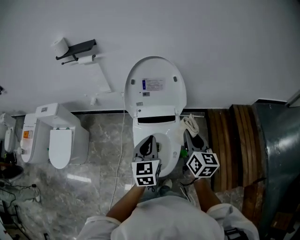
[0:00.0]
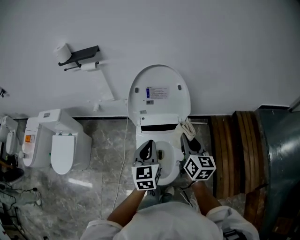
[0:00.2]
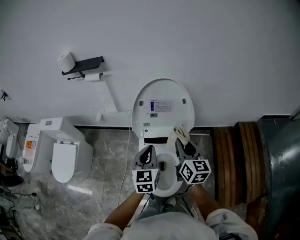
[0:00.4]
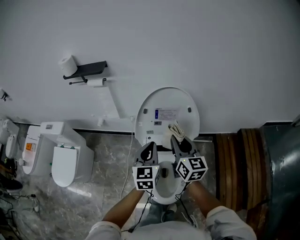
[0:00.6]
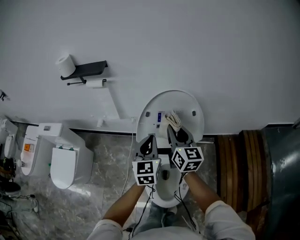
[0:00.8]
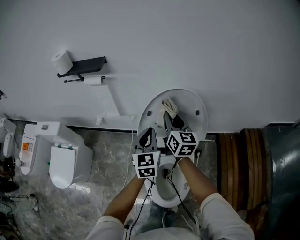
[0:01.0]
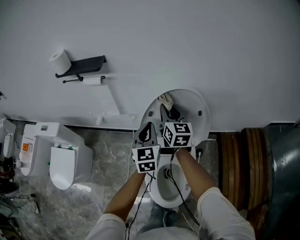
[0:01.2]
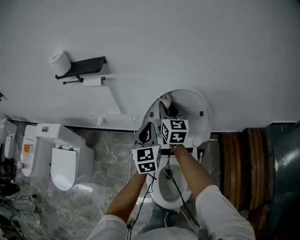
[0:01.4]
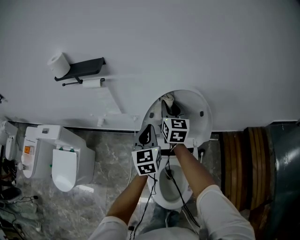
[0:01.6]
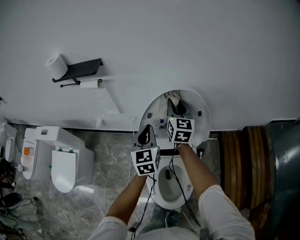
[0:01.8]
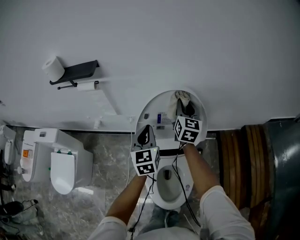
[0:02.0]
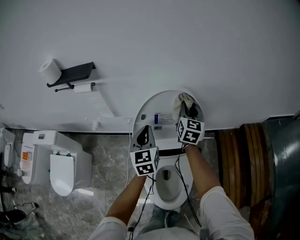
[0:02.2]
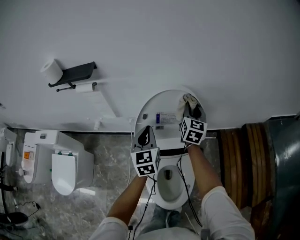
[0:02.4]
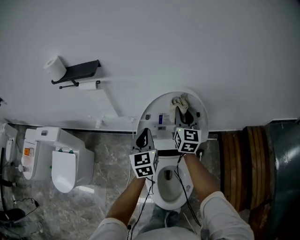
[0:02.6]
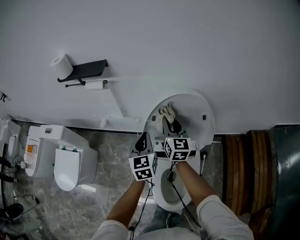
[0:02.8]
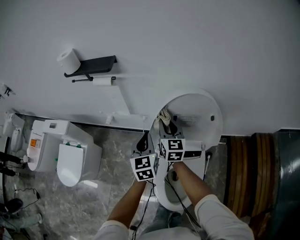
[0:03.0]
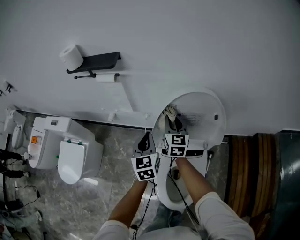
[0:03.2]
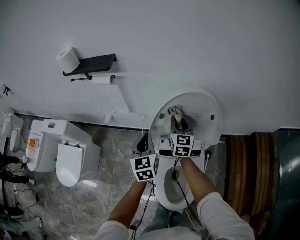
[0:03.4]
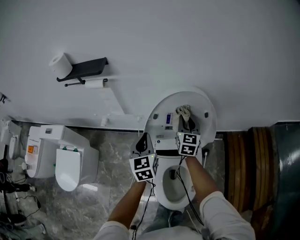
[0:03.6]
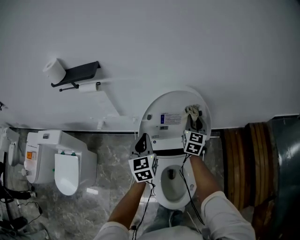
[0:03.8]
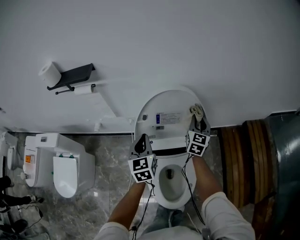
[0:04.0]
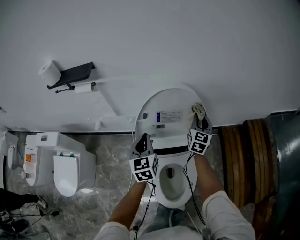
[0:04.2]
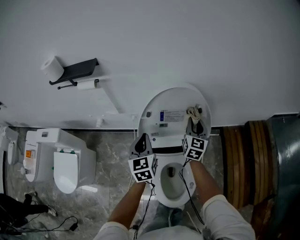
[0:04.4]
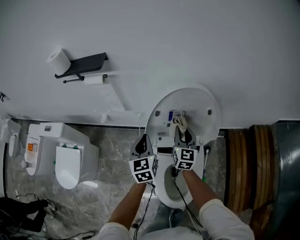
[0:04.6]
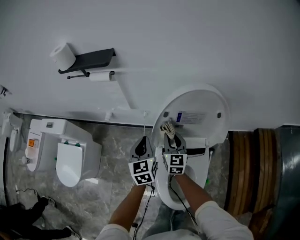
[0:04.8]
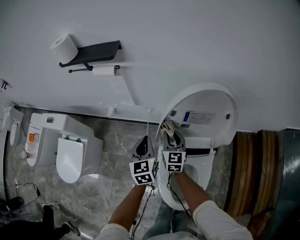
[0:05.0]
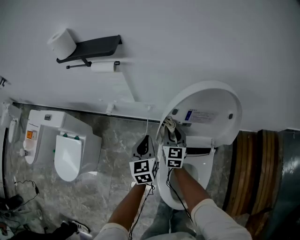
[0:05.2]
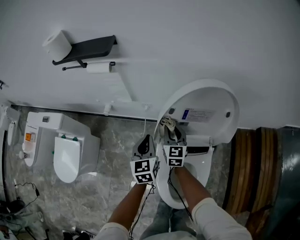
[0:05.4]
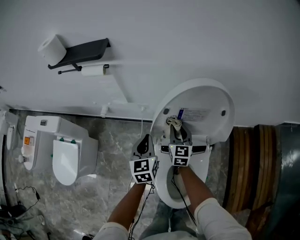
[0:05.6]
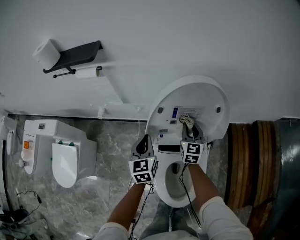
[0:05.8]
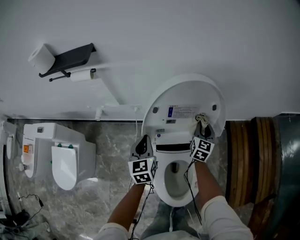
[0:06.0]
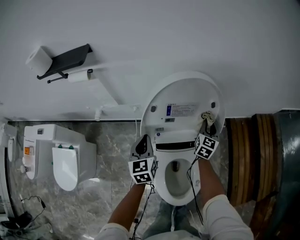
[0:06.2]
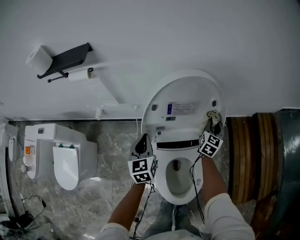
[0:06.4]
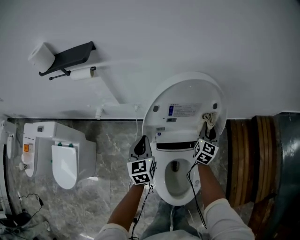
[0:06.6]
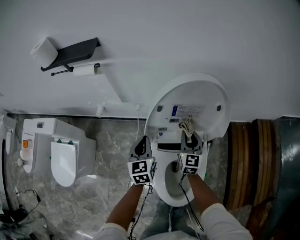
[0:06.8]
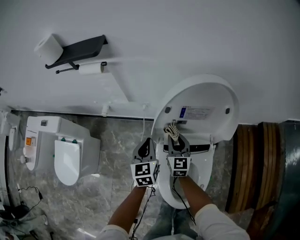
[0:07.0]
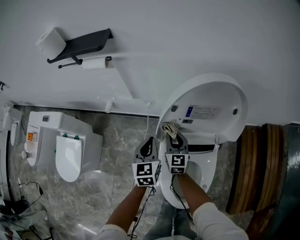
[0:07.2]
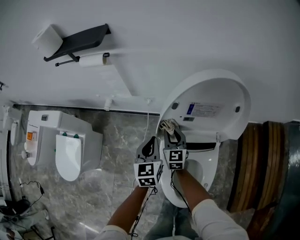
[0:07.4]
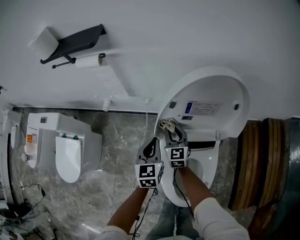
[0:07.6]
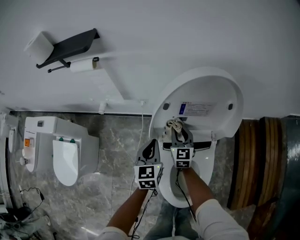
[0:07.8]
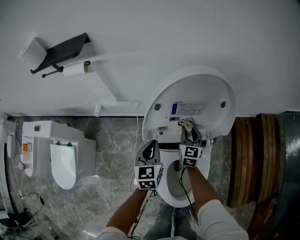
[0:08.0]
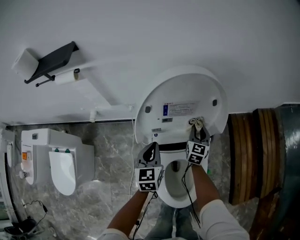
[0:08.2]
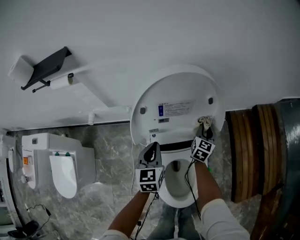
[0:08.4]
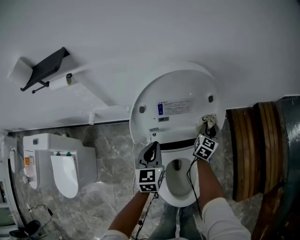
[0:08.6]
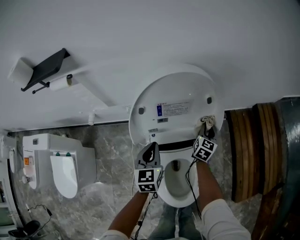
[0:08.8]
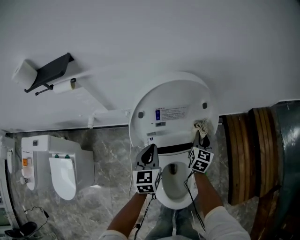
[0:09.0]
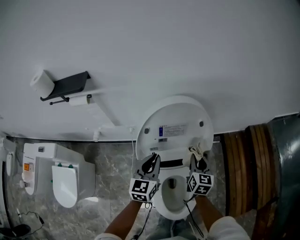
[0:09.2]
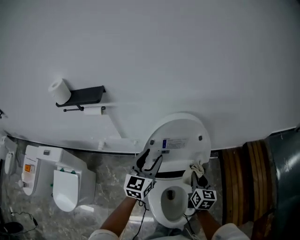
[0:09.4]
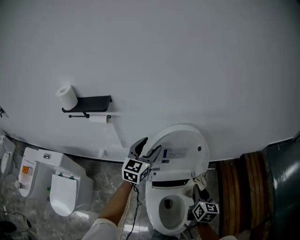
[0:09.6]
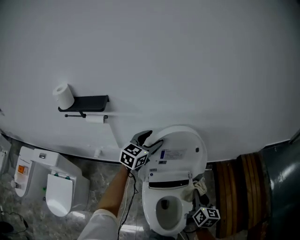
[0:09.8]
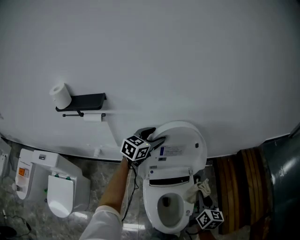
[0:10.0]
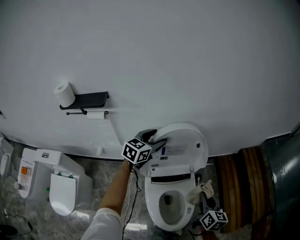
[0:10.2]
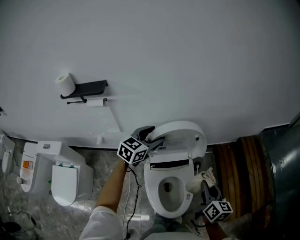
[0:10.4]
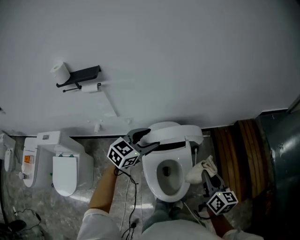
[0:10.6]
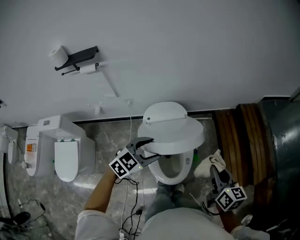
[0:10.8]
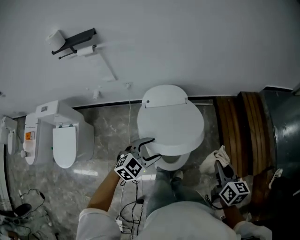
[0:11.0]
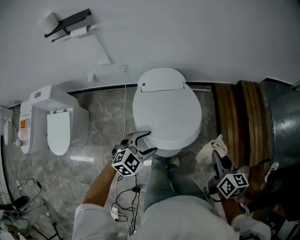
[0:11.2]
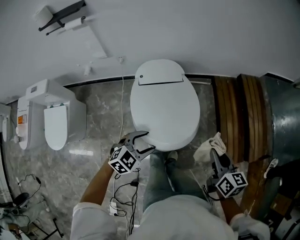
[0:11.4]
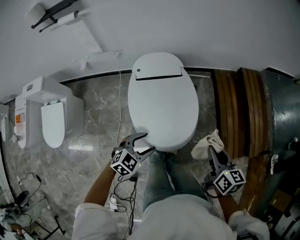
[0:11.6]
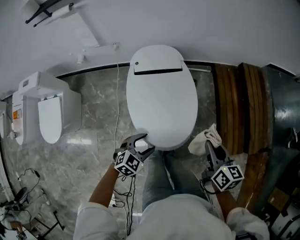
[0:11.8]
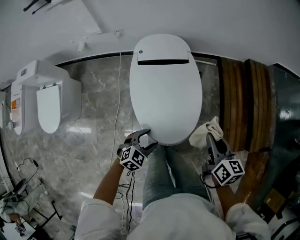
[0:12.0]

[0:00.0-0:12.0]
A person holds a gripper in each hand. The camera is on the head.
0:00.0 to 0:01.6: The left gripper shifts about 30 cm forward, while the right gripper is displaced forward and to the left by roughly 40 cm.
0:01.6 to 0:03.0: The left gripper goes about 5 cm to the left. Meanwhile the right gripper is displaced downward by some 5 cm, and travels to the right and back again, some 15 cm each way.
0:03.0 to 0:04.4: The right gripper shifts roughly 20 cm to the right, and turns by about 30 degrees.
0:04.4 to 0:06.0: The grippers both shift downward by about 10 cm. The left gripper reaches about 10 cm to the left, then returns. The right gripper reaches some 25 cm to the left, then returns.
0:06.0 to 0:07.6: The right gripper shifts roughly 25 cm to the left, and swivels some 30 degrees. The left gripper ends up some 5 cm from where it was.
0:07.6 to 0:09.0: The right gripper shifts by approximately 30 cm, and changes its angle by about 40 degrees. The left gripper shifts by some 10 cm.
0:09.0 to 0:10.4: The left gripper moves upward, approximately 20 cm, turns by about 40 degrees, and opens up; the right gripper moves backward and upward, approximately 30 cm, and swivels about 30 degrees.
0:10.4 to 0:12.0: The left gripper heads backward, downward and to the right, covering some 50 cm, and changes its angle by roughly 30 degrees. Meanwhile the right gripper travels backward, downward and to the right by approximately 20 cm.

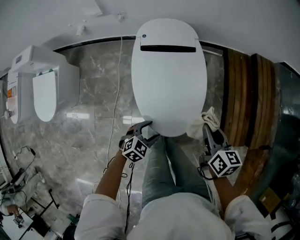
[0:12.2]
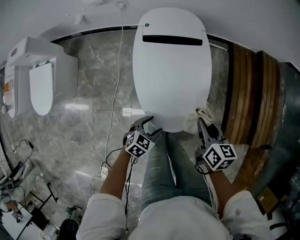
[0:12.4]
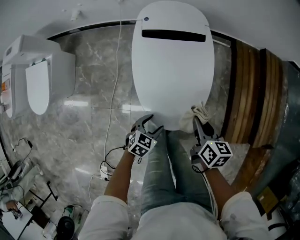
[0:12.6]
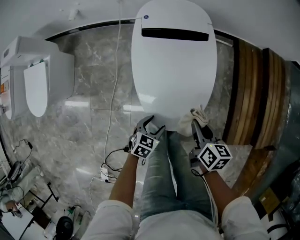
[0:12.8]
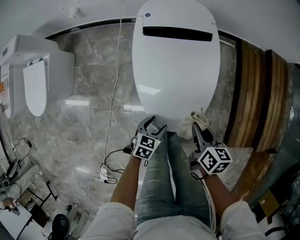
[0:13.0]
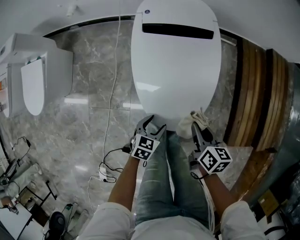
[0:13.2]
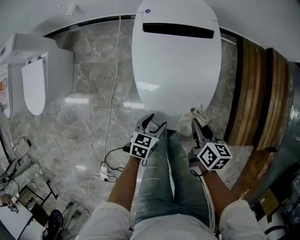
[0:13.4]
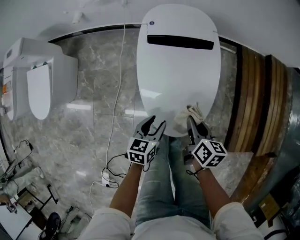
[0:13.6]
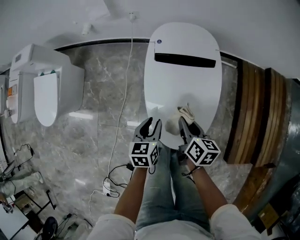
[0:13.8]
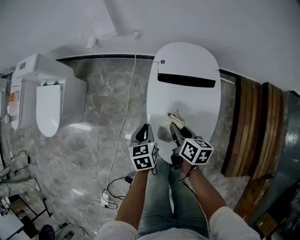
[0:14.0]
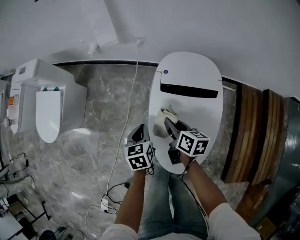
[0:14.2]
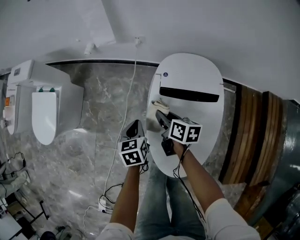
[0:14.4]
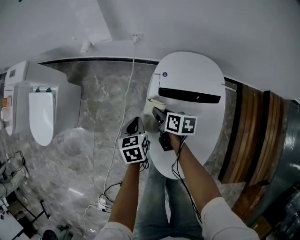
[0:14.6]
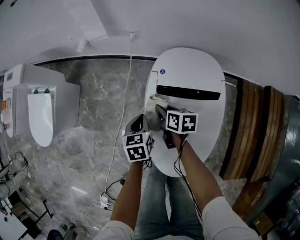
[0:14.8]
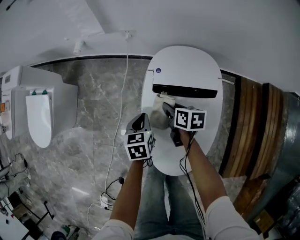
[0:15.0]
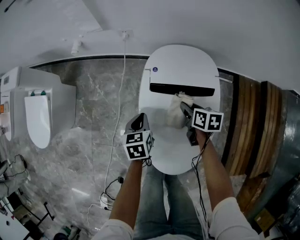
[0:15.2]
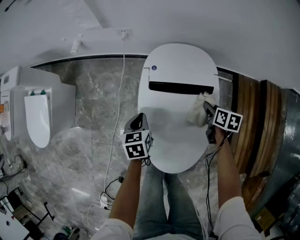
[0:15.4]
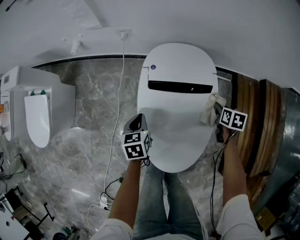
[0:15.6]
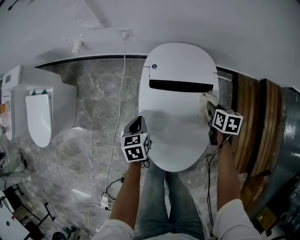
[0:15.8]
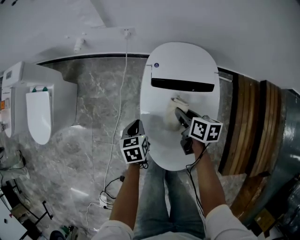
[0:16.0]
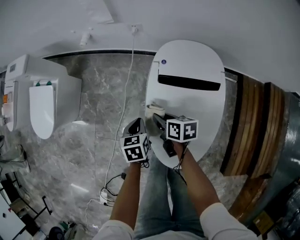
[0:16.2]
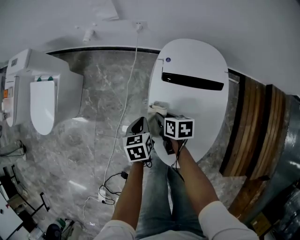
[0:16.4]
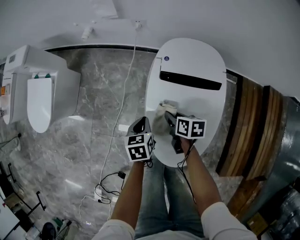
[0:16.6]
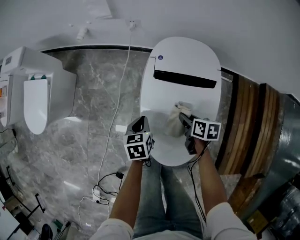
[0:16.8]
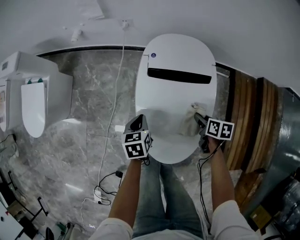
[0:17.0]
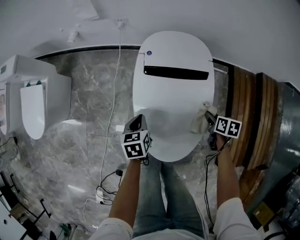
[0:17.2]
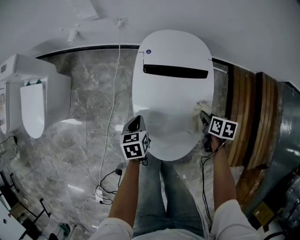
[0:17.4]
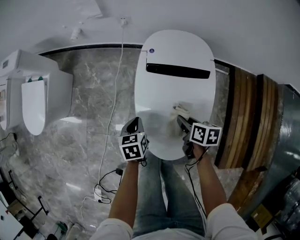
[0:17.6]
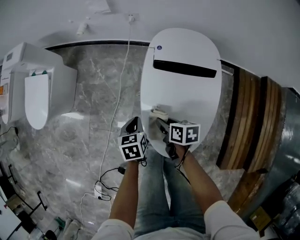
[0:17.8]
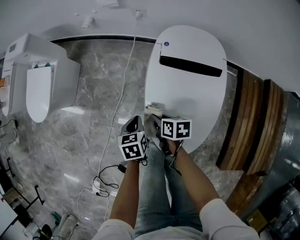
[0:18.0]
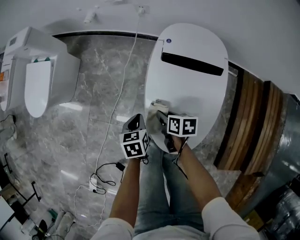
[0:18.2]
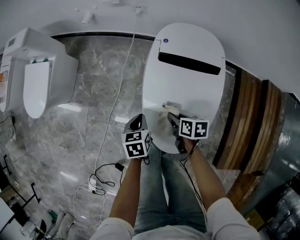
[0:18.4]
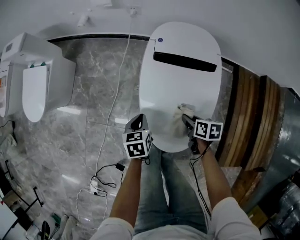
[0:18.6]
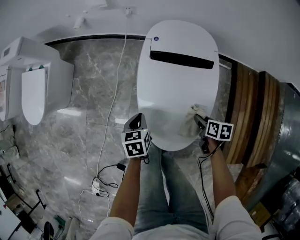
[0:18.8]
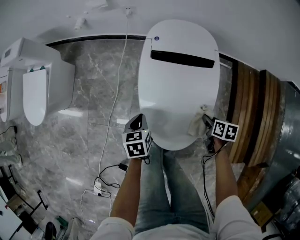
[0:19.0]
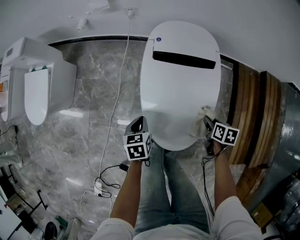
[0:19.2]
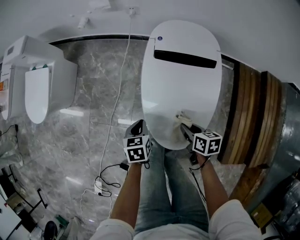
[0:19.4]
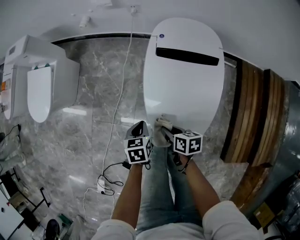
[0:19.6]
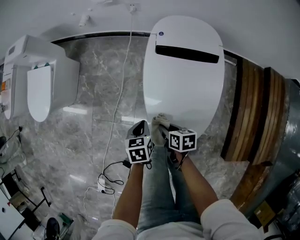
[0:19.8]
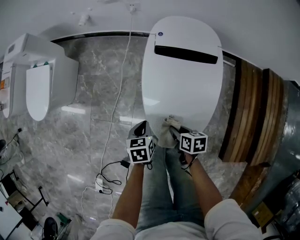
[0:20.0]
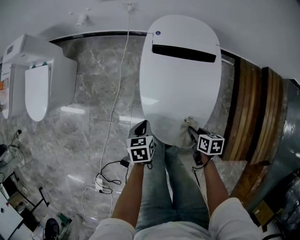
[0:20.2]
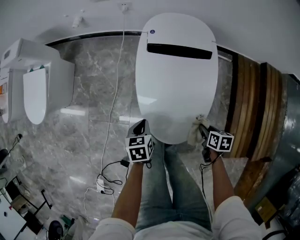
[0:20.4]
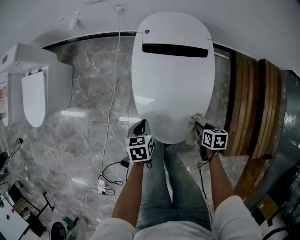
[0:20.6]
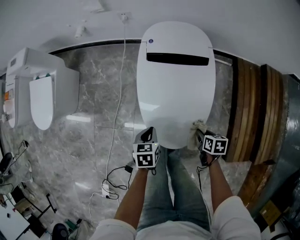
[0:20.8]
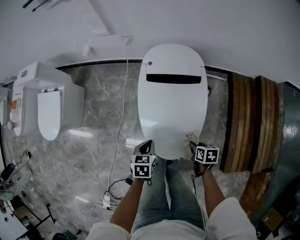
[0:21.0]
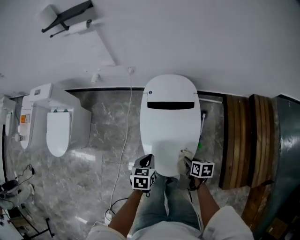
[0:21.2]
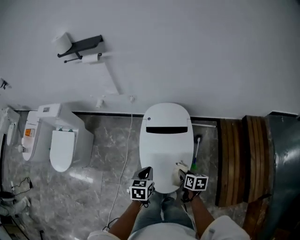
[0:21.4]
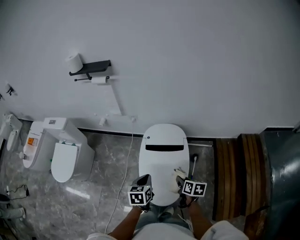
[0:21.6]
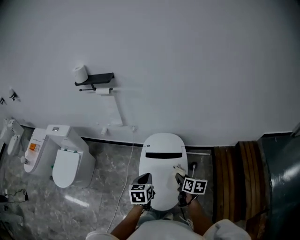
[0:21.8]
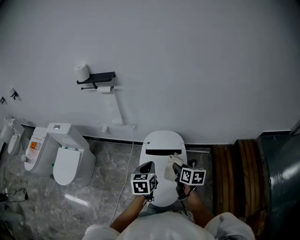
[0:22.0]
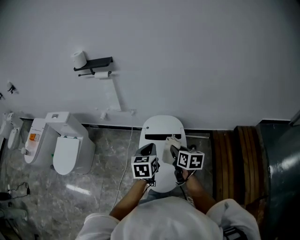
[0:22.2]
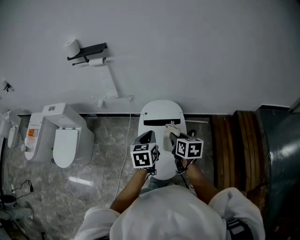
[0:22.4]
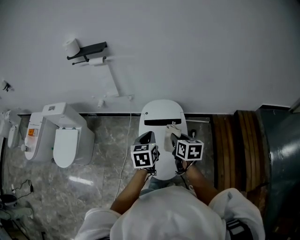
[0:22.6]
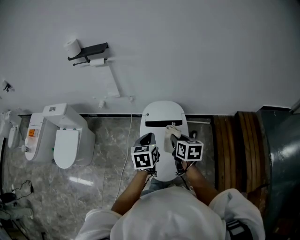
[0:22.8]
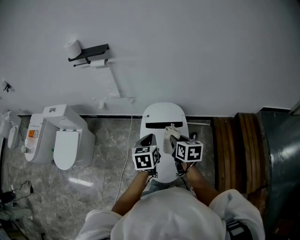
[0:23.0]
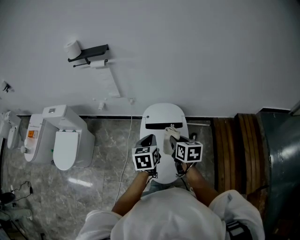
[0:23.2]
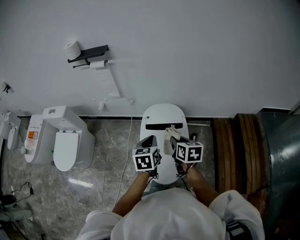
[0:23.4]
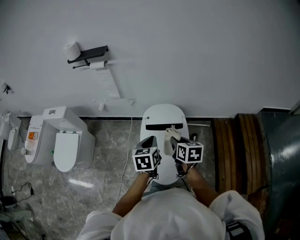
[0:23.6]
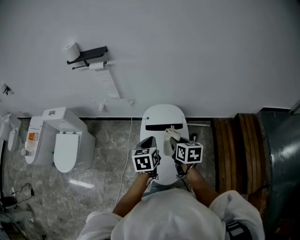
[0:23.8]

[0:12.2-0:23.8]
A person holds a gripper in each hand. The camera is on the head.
0:12.2 to 0:13.6: The right gripper shifts about 20 cm downward and to the left, while the left gripper is displaced forward by some 5 cm, and rolls counterclockwise, seen from behind, by about 40 degrees.
0:13.6 to 0:15.0: The right gripper changes place by approximately 30 cm, and rotates roughly 20 degrees. Meanwhile the left gripper ends up about 25 cm from where it was, turns by approximately 20 degrees, and closes.
0:15.0 to 0:16.6: The left gripper moves some 10 cm.
0:16.6 to 0:18.0: The two grippers go approximately 5 cm backward. The right gripper goes to the right and returns, about 25 cm each way.
0:18.0 to 0:19.4: The left gripper moves backward, approximately 5 cm; the right gripper goes about 15 cm to the right and backward.
0:19.4 to 0:21.0: The left gripper goes approximately 10 cm upward and to the right. Meanwhile the right gripper goes about 10 cm to the right and backward.
0:21.0 to 0:22.4: The grippers both shift upward by approximately 35 cm. The left gripper changes its angle by about 30 degrees. Meanwhile the right gripper rotates some 30 degrees.
0:22.4 to 0:23.8: The grippers make only small movements.
